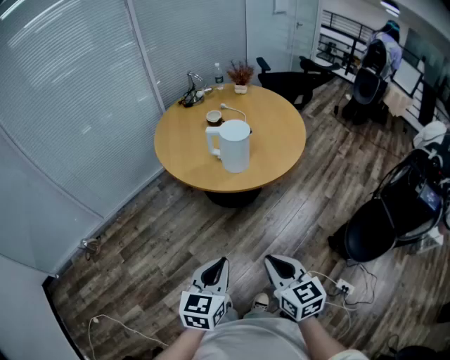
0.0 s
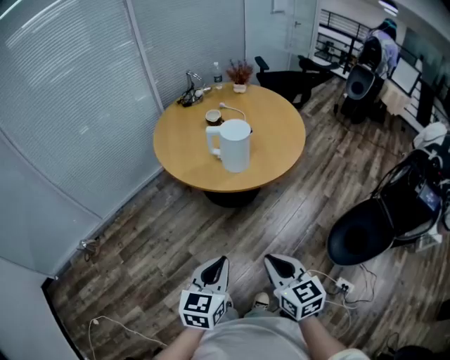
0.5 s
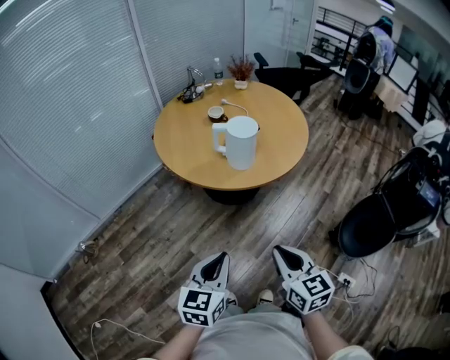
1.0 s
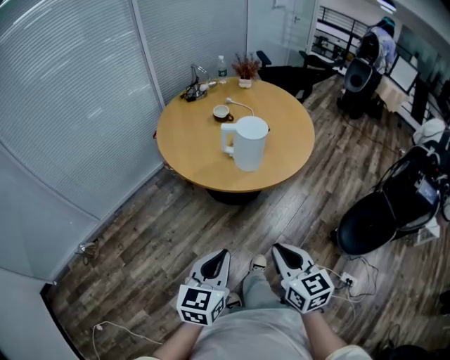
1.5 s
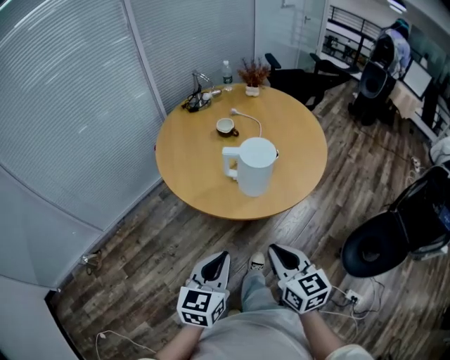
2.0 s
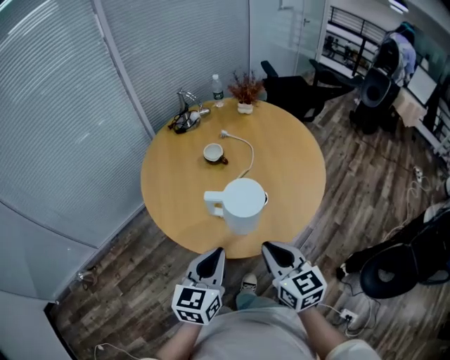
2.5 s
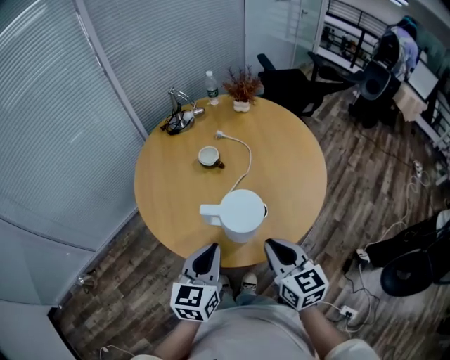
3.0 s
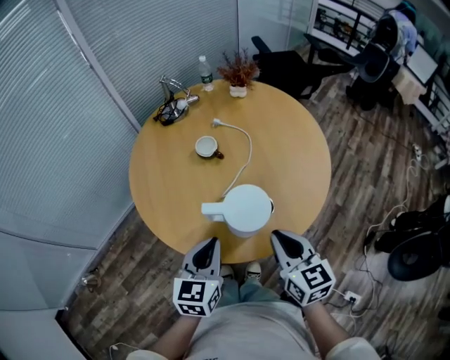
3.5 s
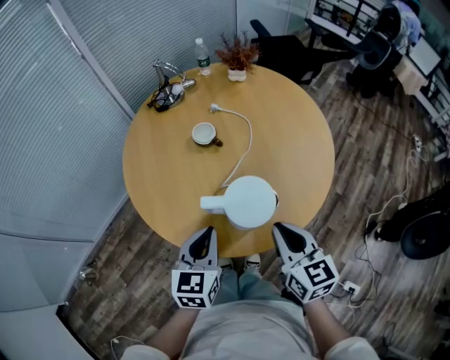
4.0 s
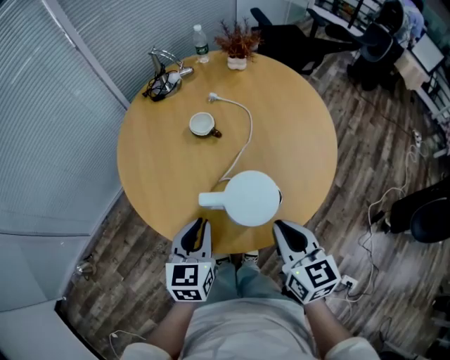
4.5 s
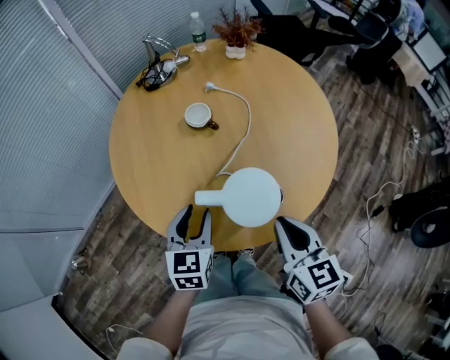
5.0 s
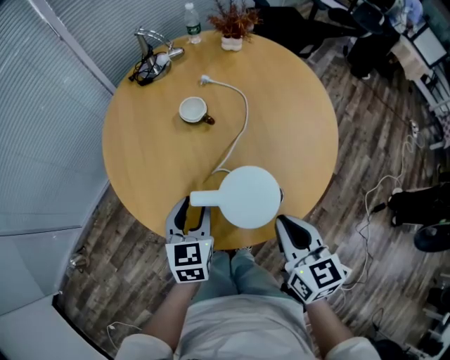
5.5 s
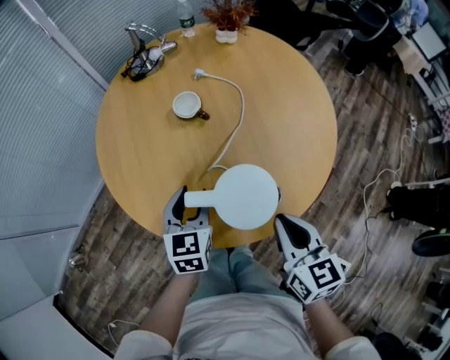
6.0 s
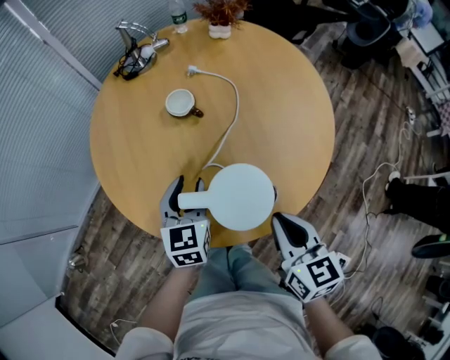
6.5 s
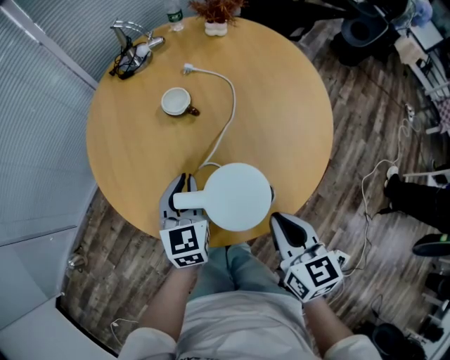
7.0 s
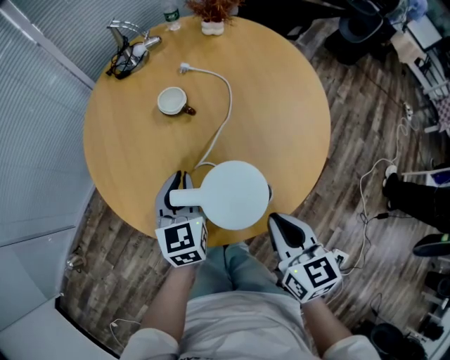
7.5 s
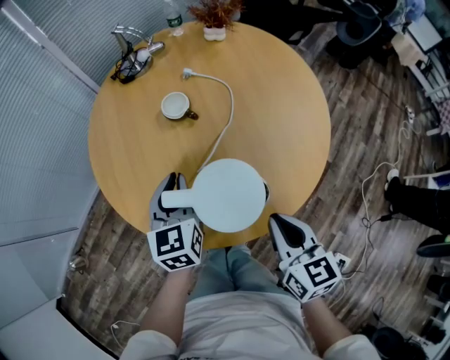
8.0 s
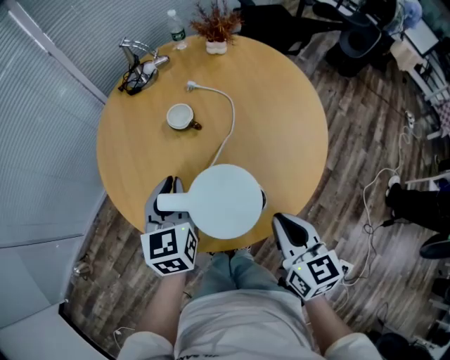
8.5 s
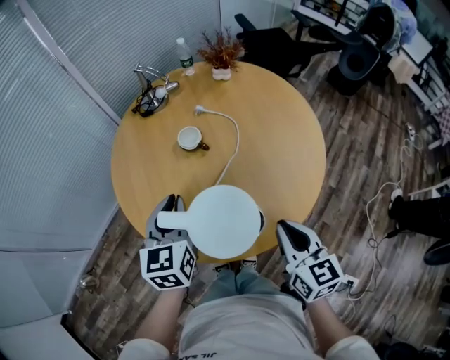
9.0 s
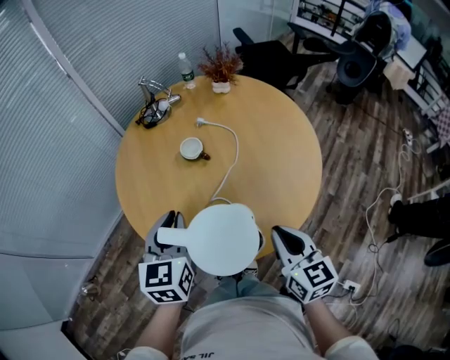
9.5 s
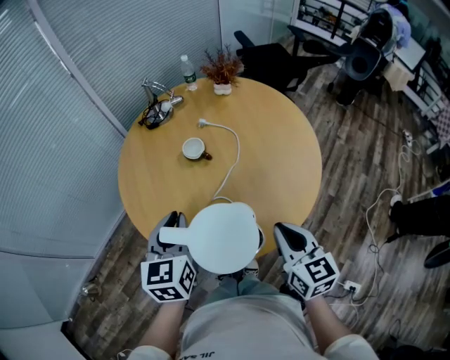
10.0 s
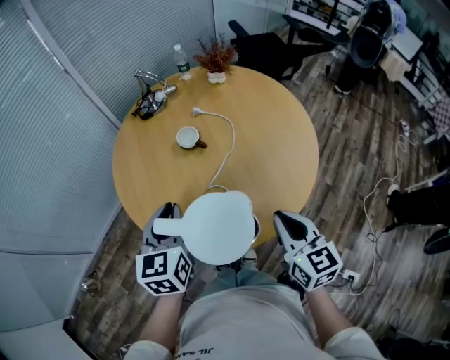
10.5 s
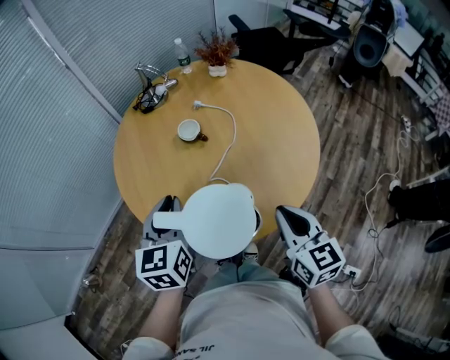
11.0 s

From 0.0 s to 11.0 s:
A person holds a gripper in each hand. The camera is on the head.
From 0.0 s to 2.0 s: Both grippers travel together forward, approximately 20 cm.
From 2.0 s to 3.5 s: Both grippers travel together forward, about 25 cm.
From 3.5 s to 5.5 s: The left gripper travels downward and forward by approximately 15 cm, and opens its fingers.
From 5.5 s to 7.5 s: The left gripper goes roughly 5 cm forward, and closes.
From 7.5 s to 9.0 s: The right gripper shifts some 5 cm upward; the left gripper travels upward by approximately 10 cm.
From 9.0 s to 11.0 s: The left gripper travels backward by about 5 cm.

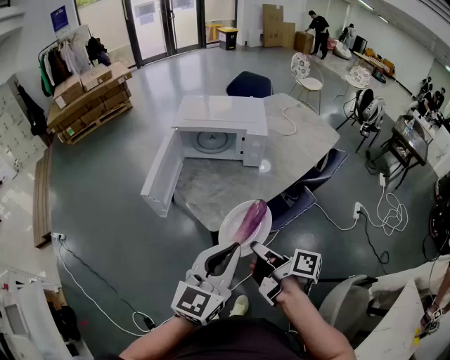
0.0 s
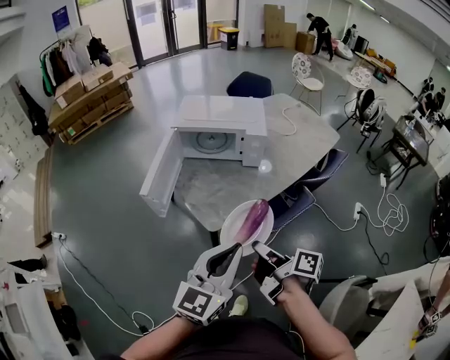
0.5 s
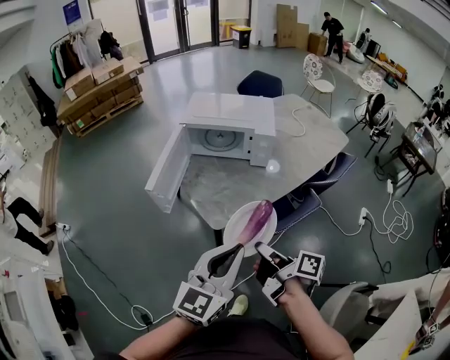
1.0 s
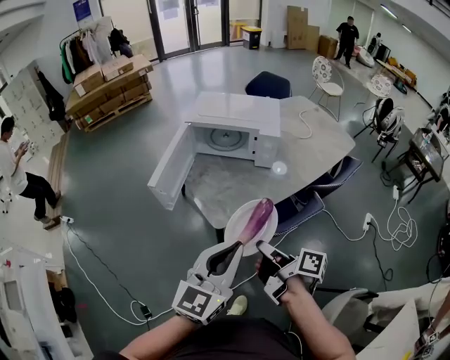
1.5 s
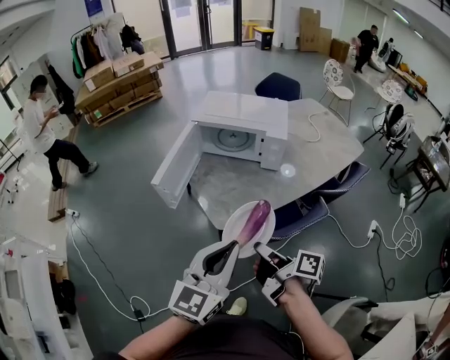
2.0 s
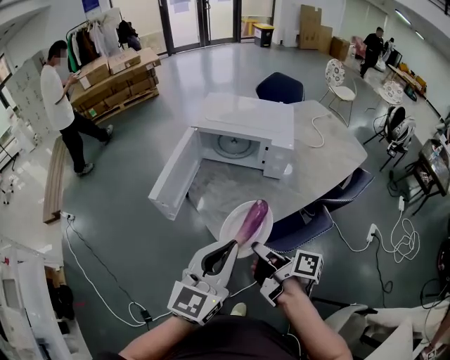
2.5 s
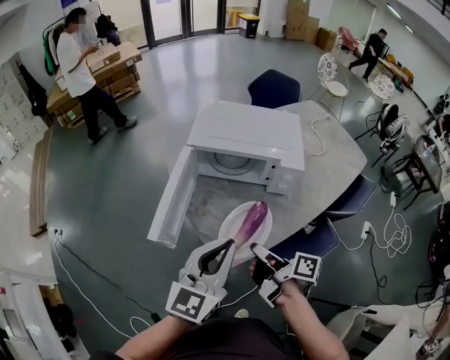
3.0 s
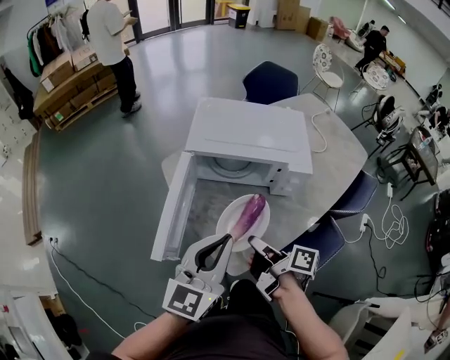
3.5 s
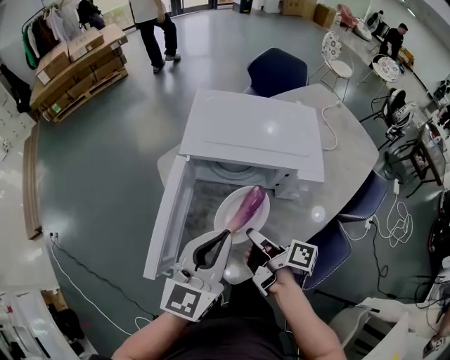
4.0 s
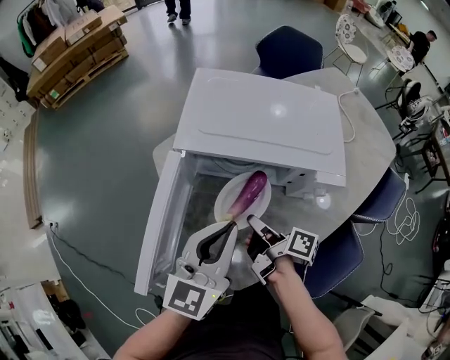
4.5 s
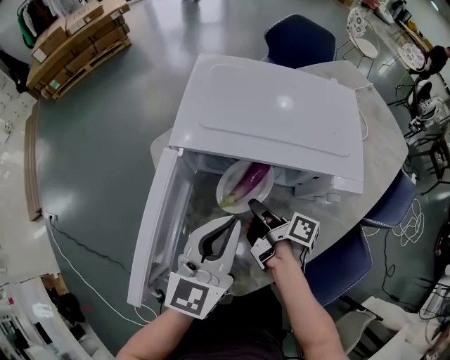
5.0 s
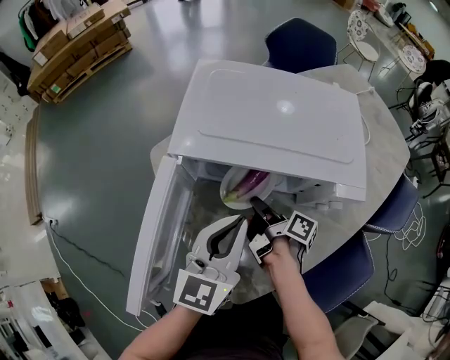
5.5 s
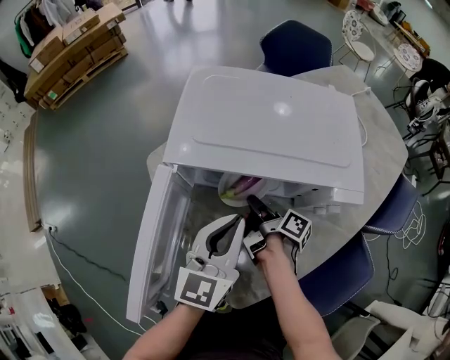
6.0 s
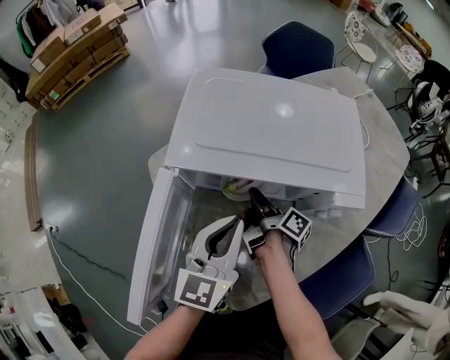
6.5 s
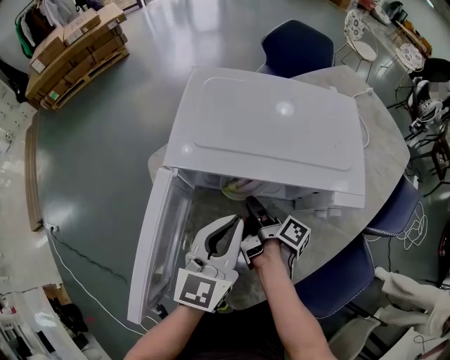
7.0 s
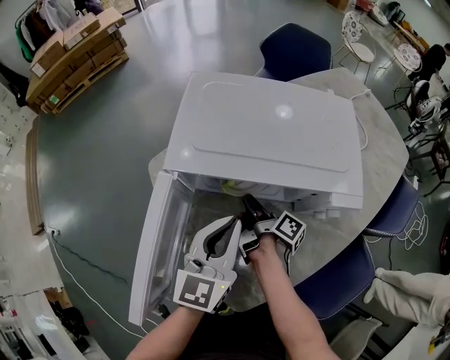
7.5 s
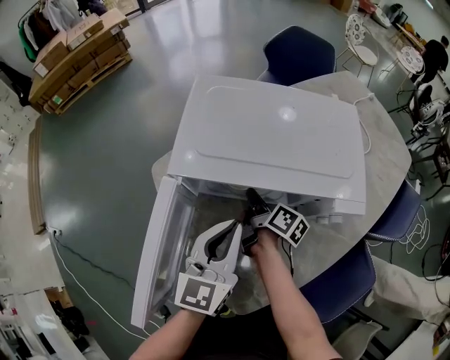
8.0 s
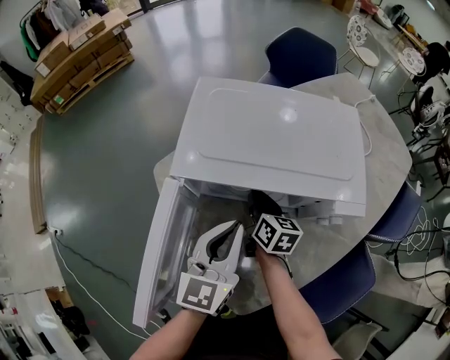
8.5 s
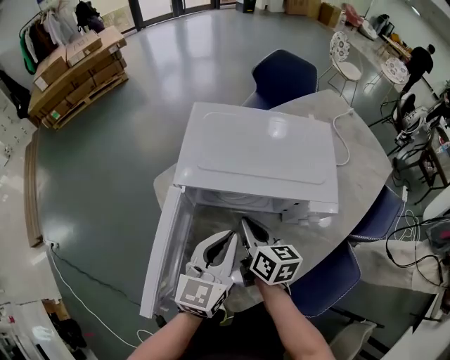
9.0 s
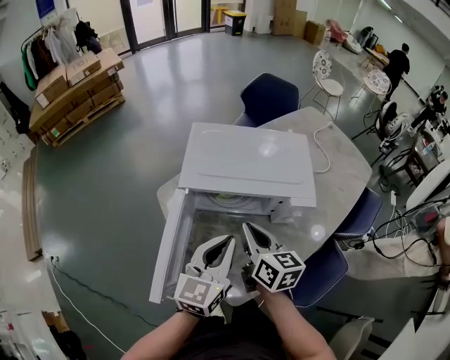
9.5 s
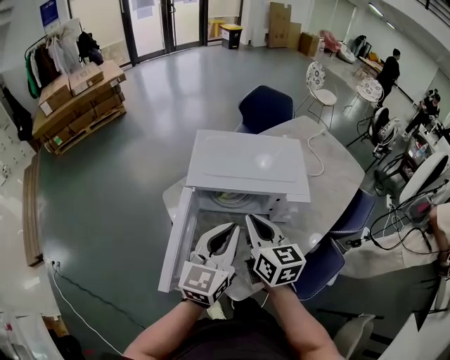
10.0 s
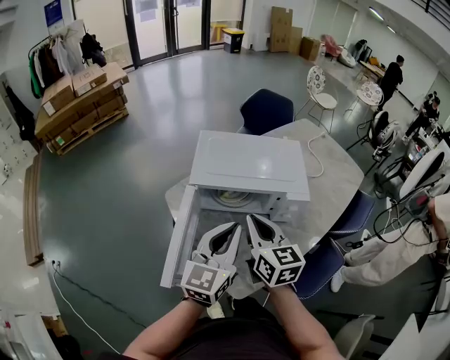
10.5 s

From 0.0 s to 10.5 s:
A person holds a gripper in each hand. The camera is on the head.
From 2.0 s to 4.0 s: The left gripper ends up roughly 35 cm from where it was.
From 4.0 s to 6.5 s: The left gripper changes place by about 20 cm.
From 8.5 s to 10.5 s: The left gripper is displaced upward by about 15 cm.

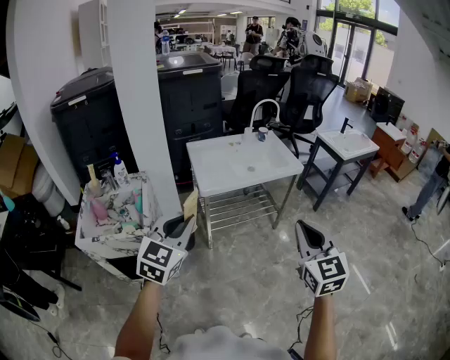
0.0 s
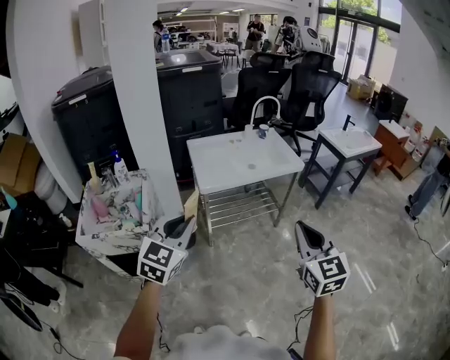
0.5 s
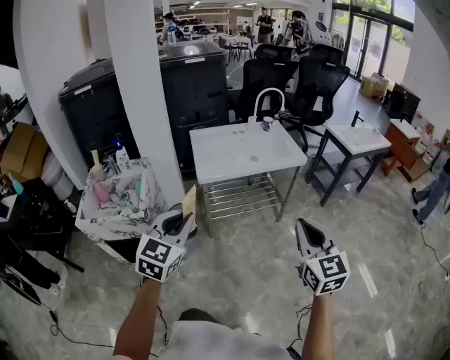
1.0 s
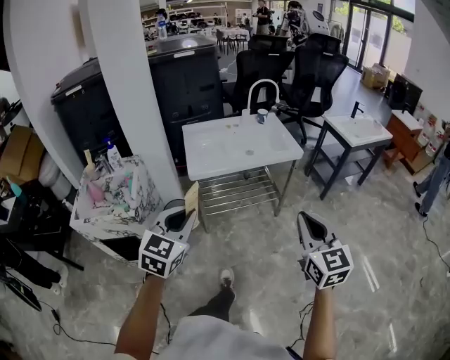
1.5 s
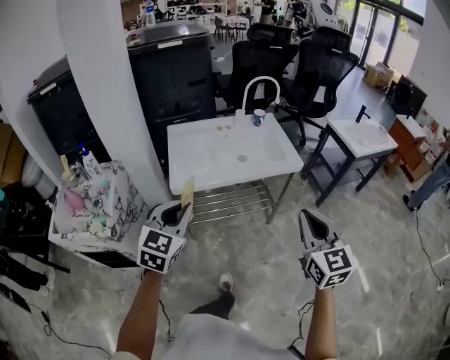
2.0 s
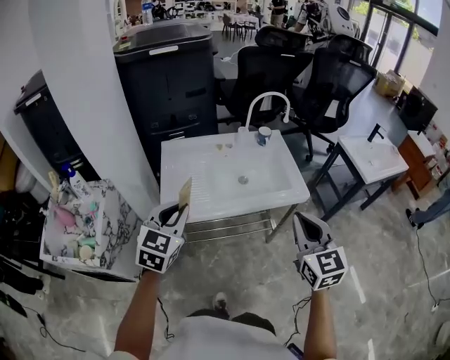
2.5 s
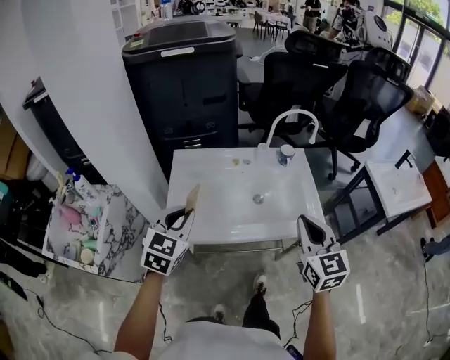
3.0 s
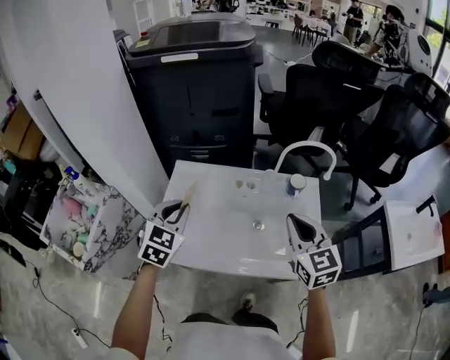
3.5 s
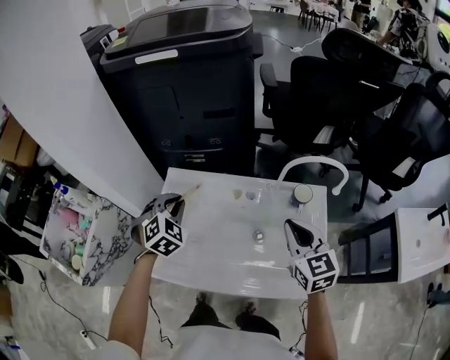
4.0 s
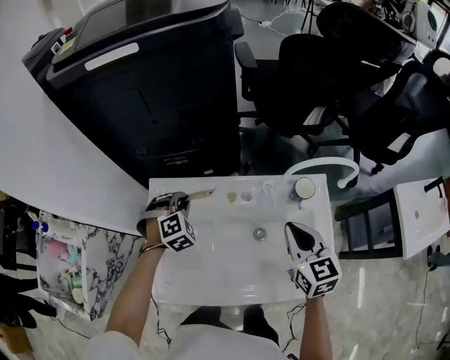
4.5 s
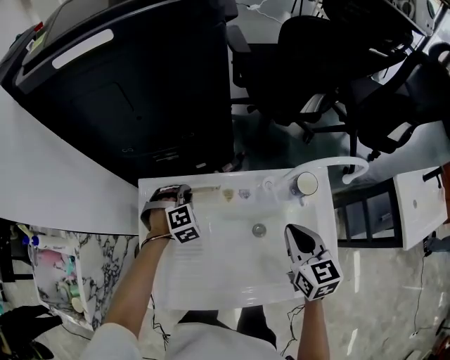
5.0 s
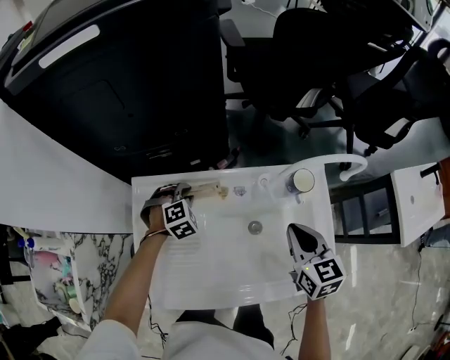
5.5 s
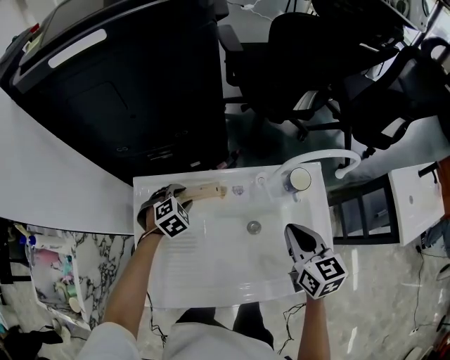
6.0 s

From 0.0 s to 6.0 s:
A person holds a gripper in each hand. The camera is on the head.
From 0.0 s to 2.0 s: Both grippers move forward and to the right, roughly 25 cm.
From 2.0 s to 4.0 s: The two grippers travel together, approximately 60 cm. The left gripper changes its angle by some 40 degrees. Meanwhile the right gripper changes its angle by roughly 30 degrees.
From 4.0 s to 6.0 s: The left gripper goes roughly 20 cm downward and forward, turns by approximately 30 degrees, and opens up. The right gripper is displaced downward by roughly 5 cm, and swivels approximately 20 degrees.
